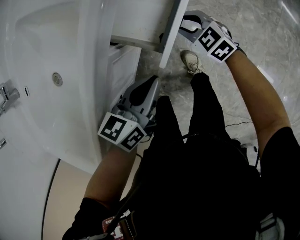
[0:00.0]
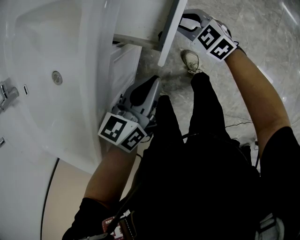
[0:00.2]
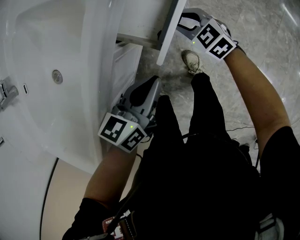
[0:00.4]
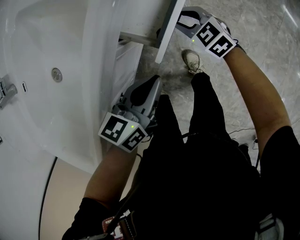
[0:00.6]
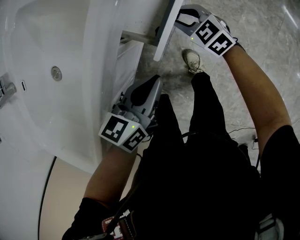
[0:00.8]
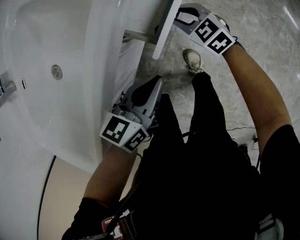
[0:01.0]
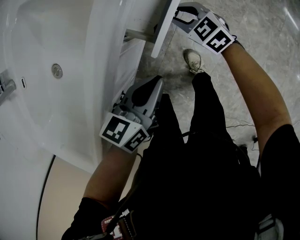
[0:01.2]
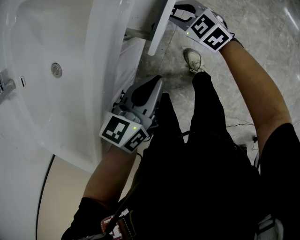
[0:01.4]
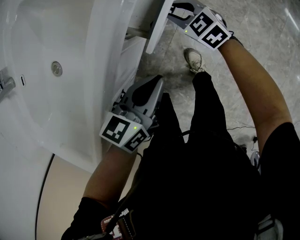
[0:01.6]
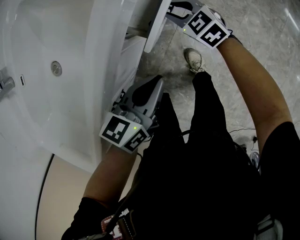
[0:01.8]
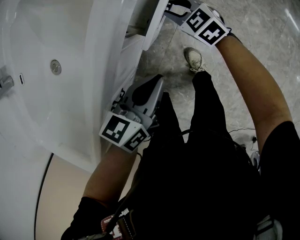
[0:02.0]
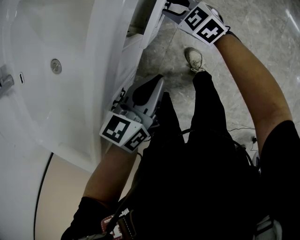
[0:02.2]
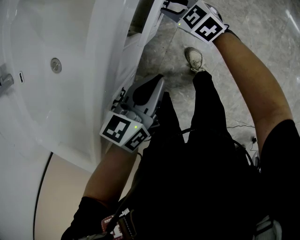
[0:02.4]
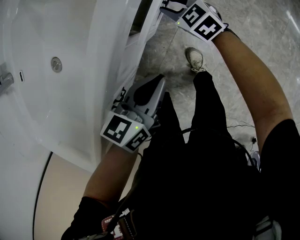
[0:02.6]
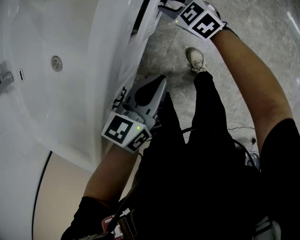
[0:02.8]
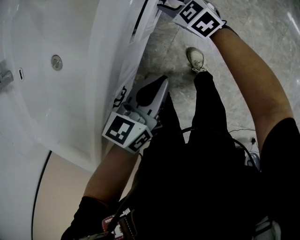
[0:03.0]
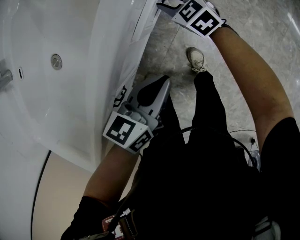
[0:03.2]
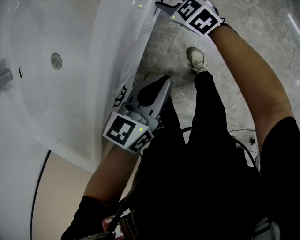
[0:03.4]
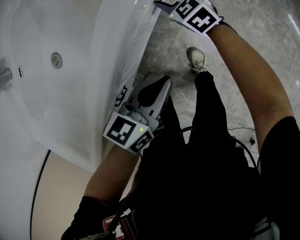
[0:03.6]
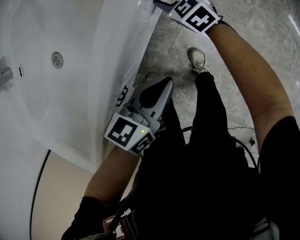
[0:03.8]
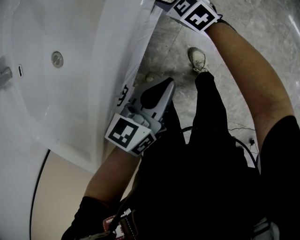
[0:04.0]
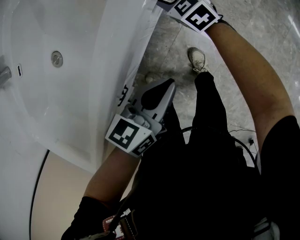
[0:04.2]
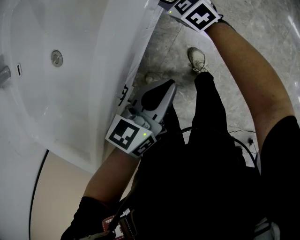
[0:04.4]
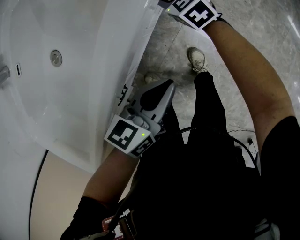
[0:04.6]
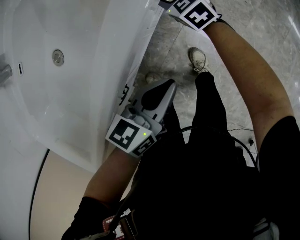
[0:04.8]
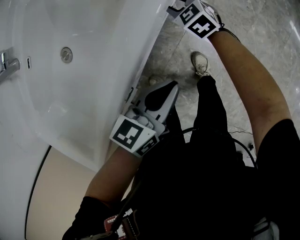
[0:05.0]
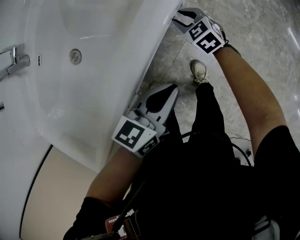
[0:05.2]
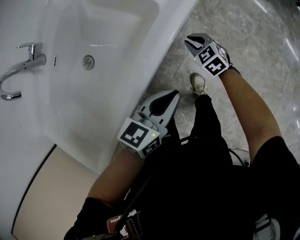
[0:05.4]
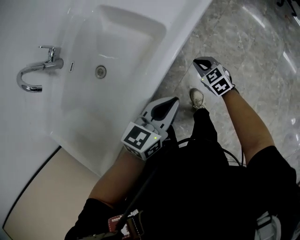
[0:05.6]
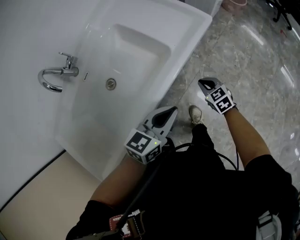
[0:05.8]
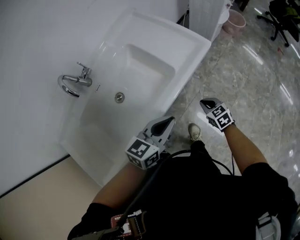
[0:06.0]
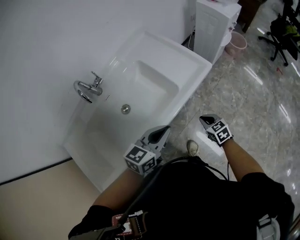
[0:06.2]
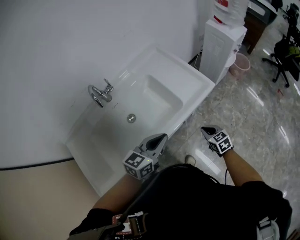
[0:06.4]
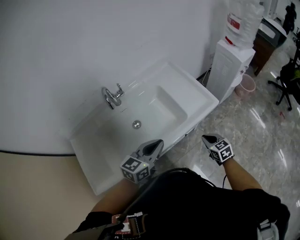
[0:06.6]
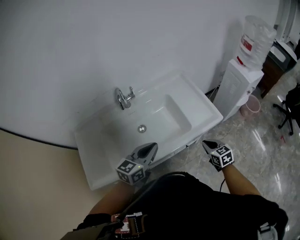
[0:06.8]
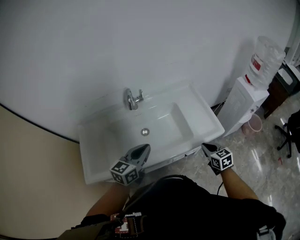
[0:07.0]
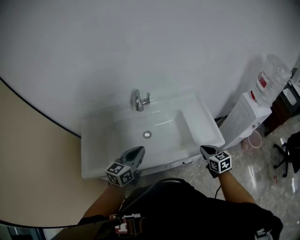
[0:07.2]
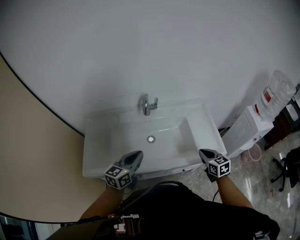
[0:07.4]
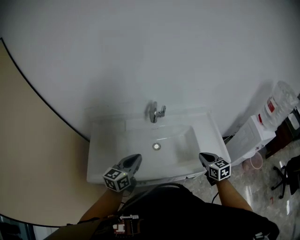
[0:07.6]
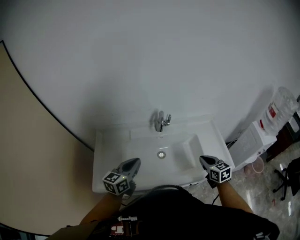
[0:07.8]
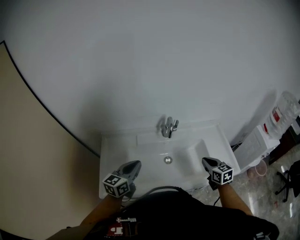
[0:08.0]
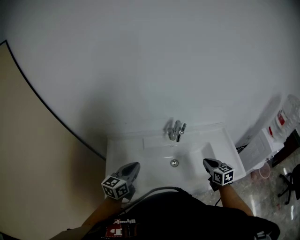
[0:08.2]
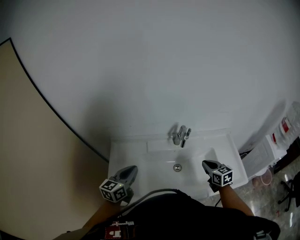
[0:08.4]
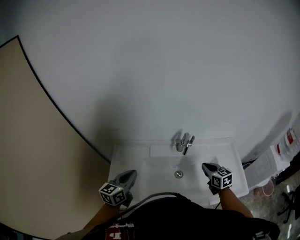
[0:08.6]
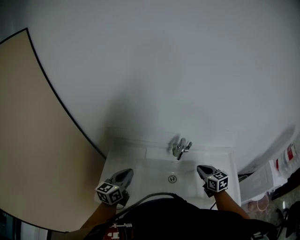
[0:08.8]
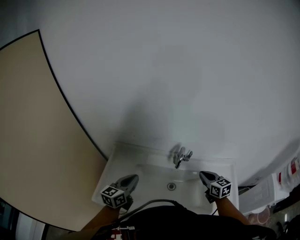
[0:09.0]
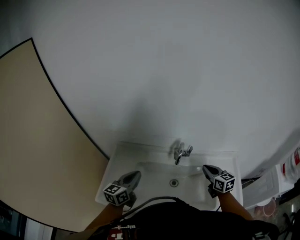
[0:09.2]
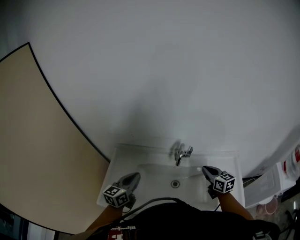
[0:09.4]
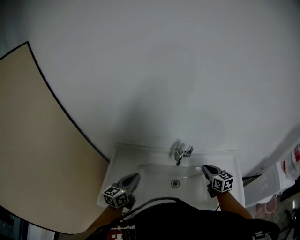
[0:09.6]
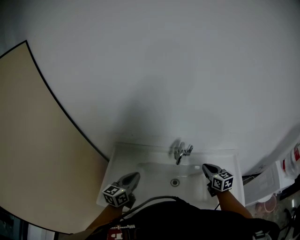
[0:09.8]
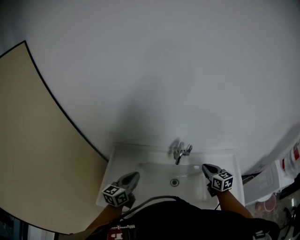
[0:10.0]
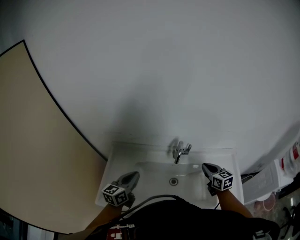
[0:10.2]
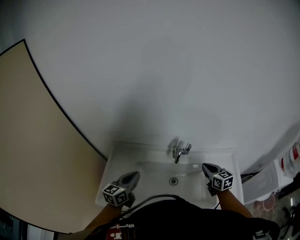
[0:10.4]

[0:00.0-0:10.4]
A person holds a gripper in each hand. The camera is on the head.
0.0 to 1.4 s: The right gripper heads to the left, covering some 5 cm.
1.4 to 3.0 s: The right gripper ends up about 5 cm from where it was.
3.0 to 4.4 s: The grippers make only small movements.
4.4 to 6.0 s: The left gripper travels upward by about 25 cm. The right gripper travels upward, backward and to the right by about 25 cm, and closes its fingers.
6.0 to 7.4 s: The left gripper ends up some 25 cm from where it was, and changes its angle by about 50 degrees. The right gripper moves upward, some 30 cm, and swivels approximately 30 degrees.
7.4 to 9.0 s: The left gripper shifts some 20 cm to the left and forward; the right gripper moves forward and to the left, about 25 cm, and swivels some 20 degrees.
9.0 to 10.4 s: The grippers make only small movements.

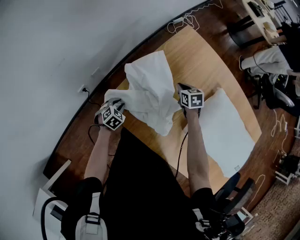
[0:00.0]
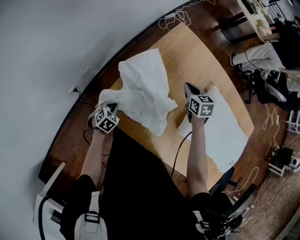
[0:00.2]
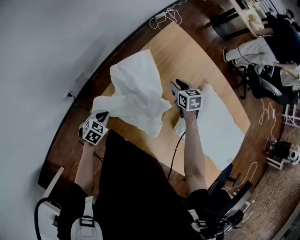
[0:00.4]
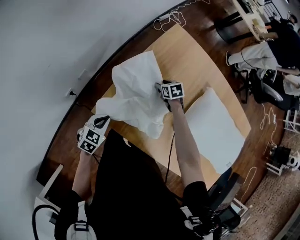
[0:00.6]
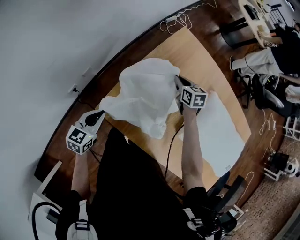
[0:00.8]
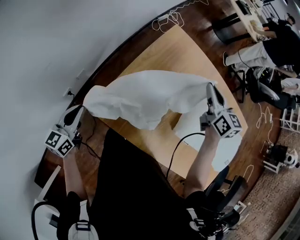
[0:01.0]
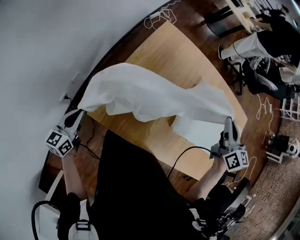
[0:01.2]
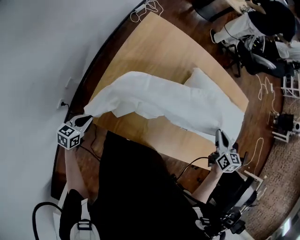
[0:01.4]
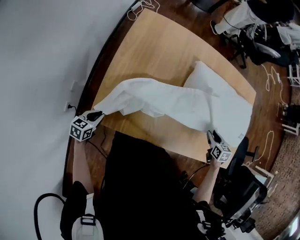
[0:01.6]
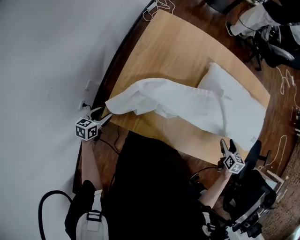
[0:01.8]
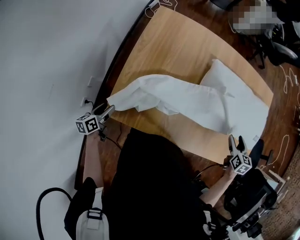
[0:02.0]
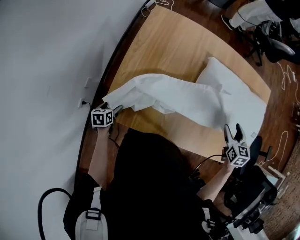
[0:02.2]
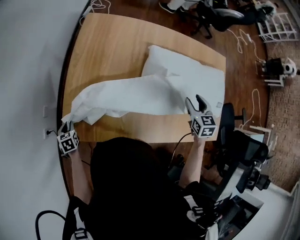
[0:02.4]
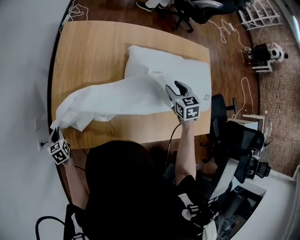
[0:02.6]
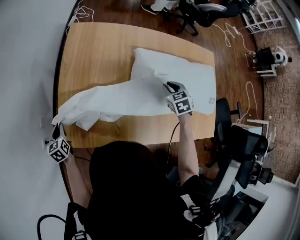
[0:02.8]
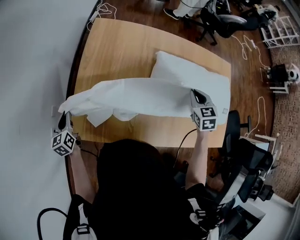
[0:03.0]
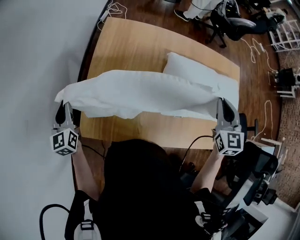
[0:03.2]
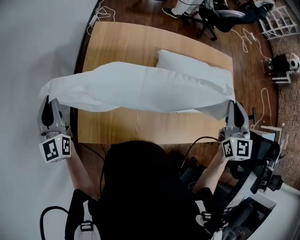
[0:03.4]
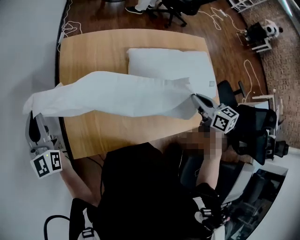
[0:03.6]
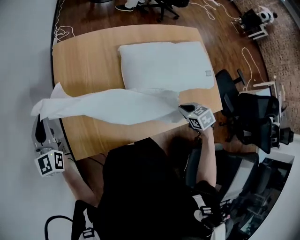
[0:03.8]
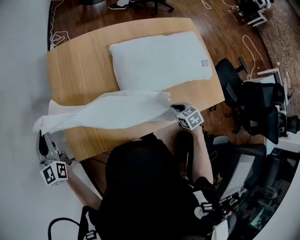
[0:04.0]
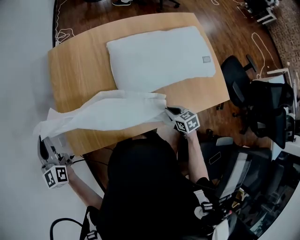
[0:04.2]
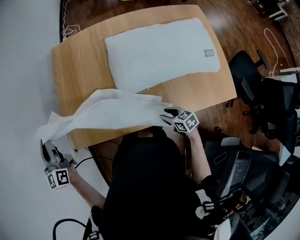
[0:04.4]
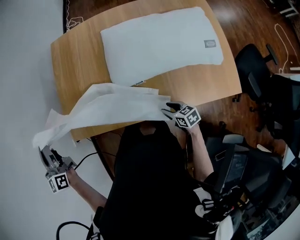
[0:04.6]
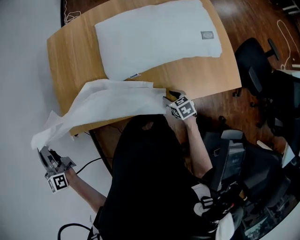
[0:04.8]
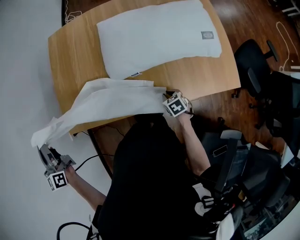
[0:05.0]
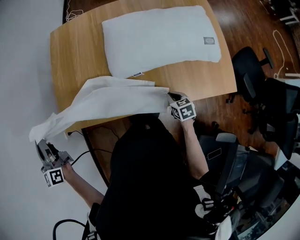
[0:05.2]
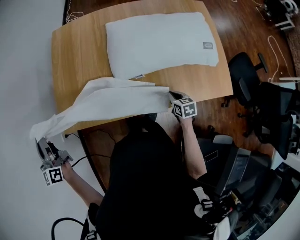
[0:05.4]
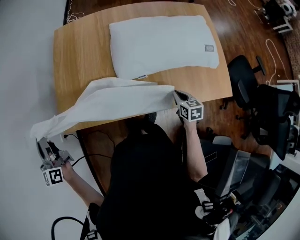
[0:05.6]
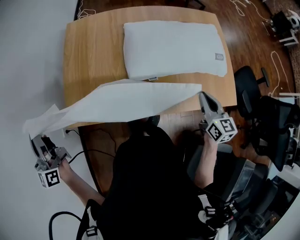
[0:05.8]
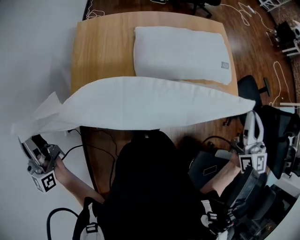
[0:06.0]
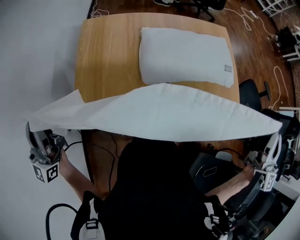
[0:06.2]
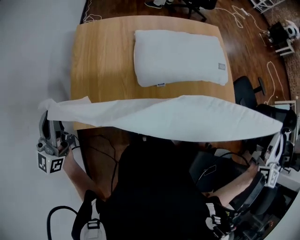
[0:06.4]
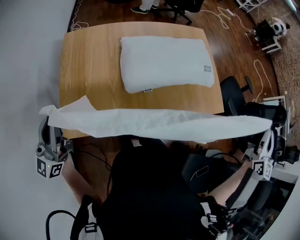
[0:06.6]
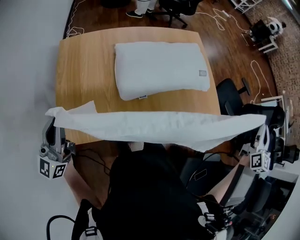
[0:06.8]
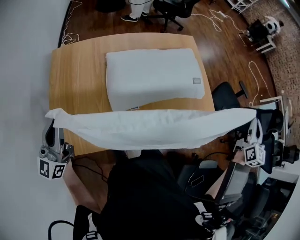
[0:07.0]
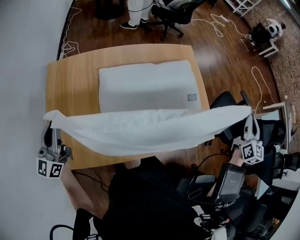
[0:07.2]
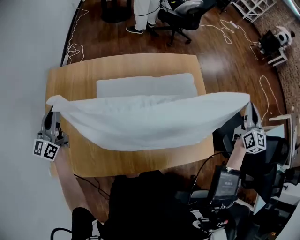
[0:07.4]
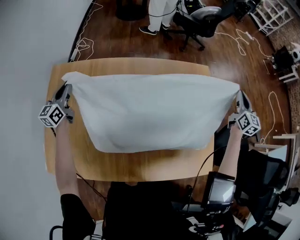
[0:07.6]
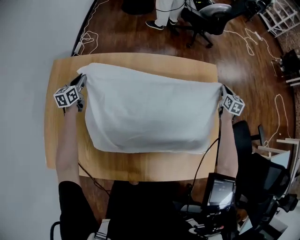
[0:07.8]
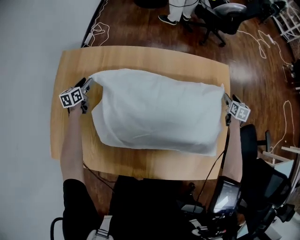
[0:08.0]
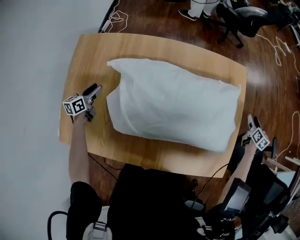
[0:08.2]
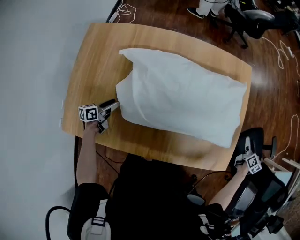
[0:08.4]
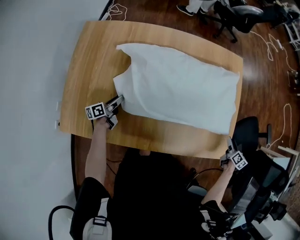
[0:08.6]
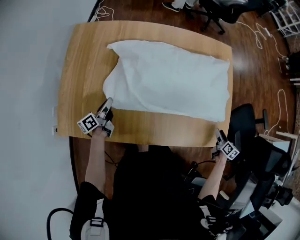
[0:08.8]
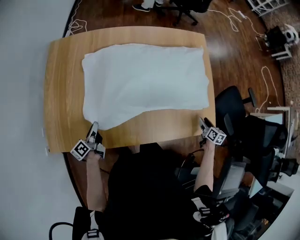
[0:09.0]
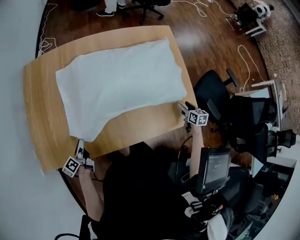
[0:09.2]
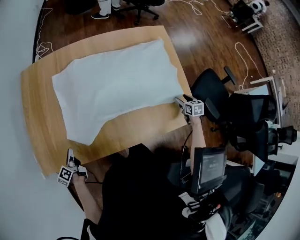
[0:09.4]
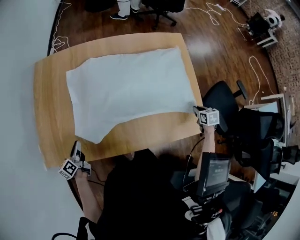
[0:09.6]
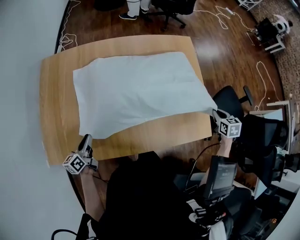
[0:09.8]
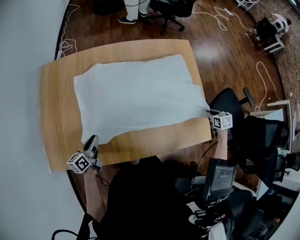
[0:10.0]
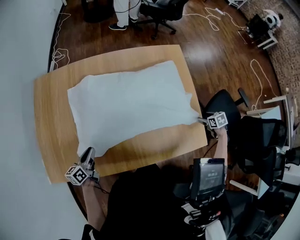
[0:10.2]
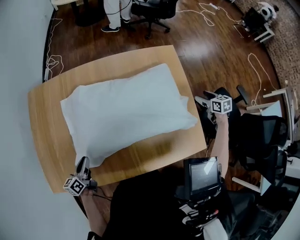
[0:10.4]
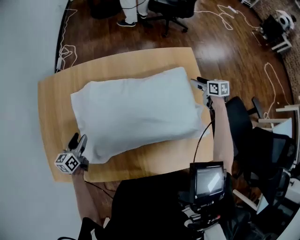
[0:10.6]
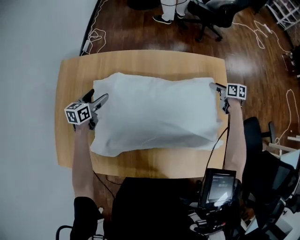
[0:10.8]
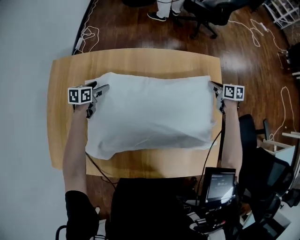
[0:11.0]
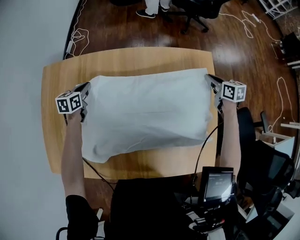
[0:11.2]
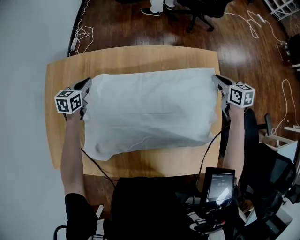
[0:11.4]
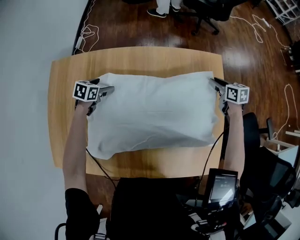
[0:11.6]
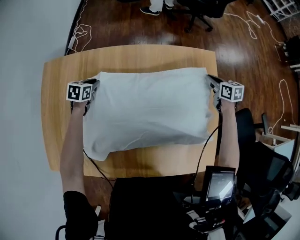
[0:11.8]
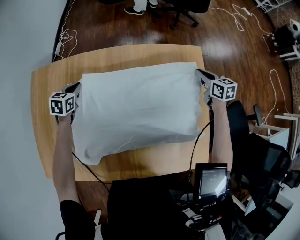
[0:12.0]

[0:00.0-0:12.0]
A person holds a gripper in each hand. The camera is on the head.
0.0 to 1.6 s: The right gripper moves up and down over about 40 cm, changing direction 3 times, changes its angle by approximately 40 degrees, and opens, then closes again; the left gripper reaches about 25 cm upward, then returns, and rotates about 30 degrees.
1.6 to 3.0 s: The right gripper moves upward, forward and to the left, about 20 cm, changes its angle by roughly 20 degrees, and opens, then closes once more. Meanwhile the left gripper goes about 15 cm forward and upward, rotates roughly 40 degrees, and opens, then closes once more.
3.0 to 4.4 s: The left gripper swings up and down, some 25 cm each way, with 2 reversals, and rotates roughly 30 degrees, while the right gripper goes approximately 35 cm backward and downward, turns by some 40 degrees, and opens.
4.4 to 6.0 s: The right gripper goes roughly 40 cm upward, tips its fingers upward by some 40 degrees, and closes its fingers. Meanwhile the left gripper moves upward, some 15 cm, and changes its angle by some 30 degrees.
6.0 to 7.6 s: The pair of grippers is taken approximately 50 cm. The left gripper points its fingers some 30 degrees further downward.
7.6 to 9.0 s: The two grippers go roughly 40 cm backward and downward. The left gripper rotates around the line of its fingers by some 50 degrees, counterclockwise from behind, and opens, then closes again; the right gripper changes its angle by some 40 degrees, and opens up.
9.0 to 10.4 s: The left gripper shifts roughly 10 cm to the right and forward, and swivels some 30 degrees. The right gripper shifts some 25 cm forward, turns by some 30 degrees, and closes, then opens again.
10.4 to 12.0 s: The right gripper moves forward and to the left, about 25 cm, and closes its fingers. Meanwhile the left gripper shifts about 35 cm forward, rotates about 50 degrees, and opens, then closes again.

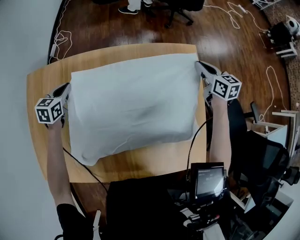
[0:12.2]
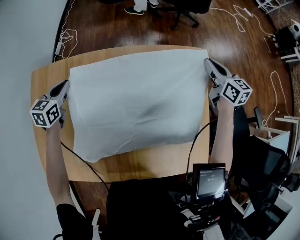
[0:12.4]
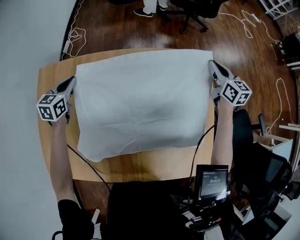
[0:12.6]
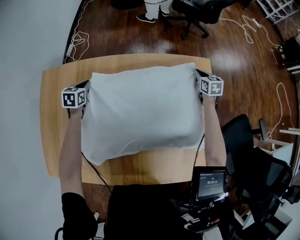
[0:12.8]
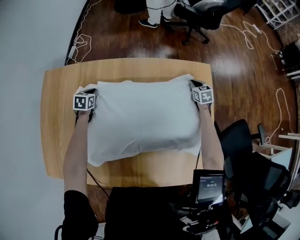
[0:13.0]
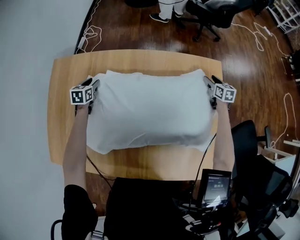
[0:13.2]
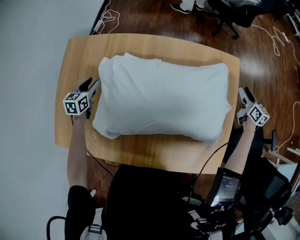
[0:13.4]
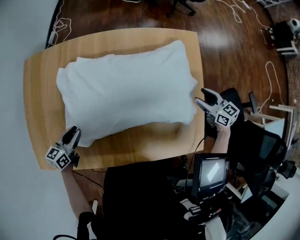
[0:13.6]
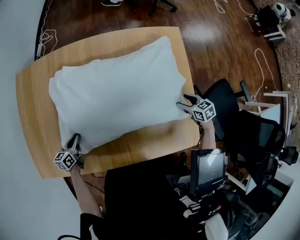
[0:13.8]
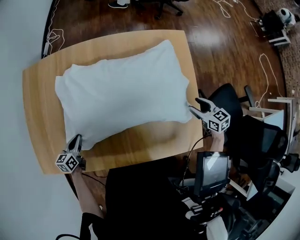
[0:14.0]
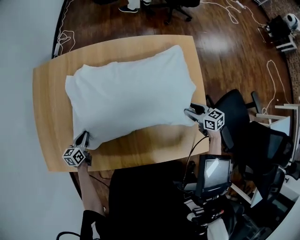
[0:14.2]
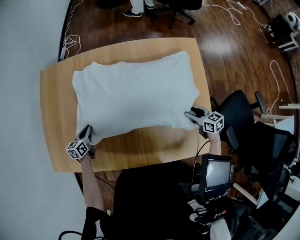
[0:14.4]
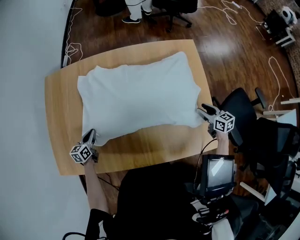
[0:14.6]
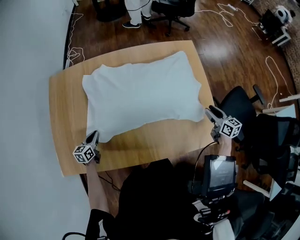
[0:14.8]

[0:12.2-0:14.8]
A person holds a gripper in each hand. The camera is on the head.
12.2 to 13.4 s: The right gripper moves up and down over roughly 25 cm, changing direction 2 times, and opens. The left gripper moves up and down over some 20 cm, changing direction 2 times, and opens its fingers.
13.4 to 14.8 s: Both grippers travel together backward, approximately 25 cm. The left gripper closes up.
